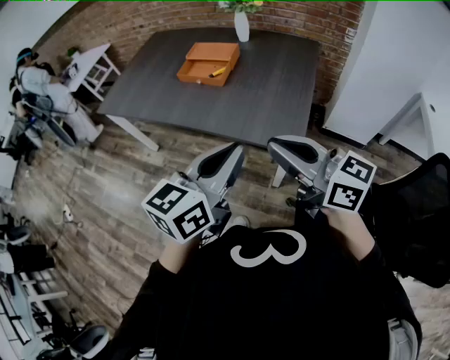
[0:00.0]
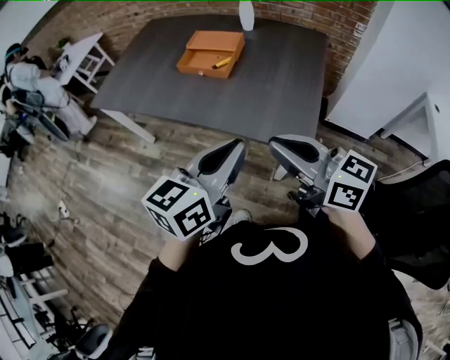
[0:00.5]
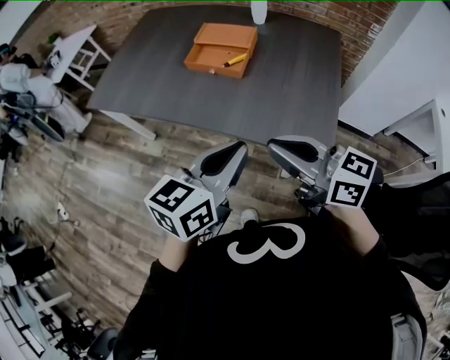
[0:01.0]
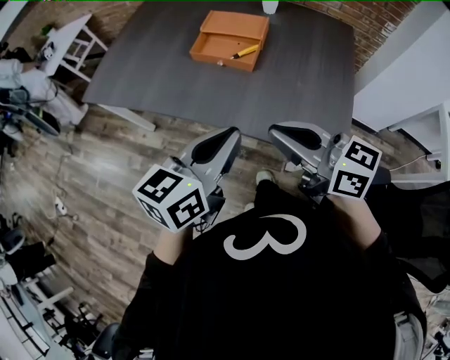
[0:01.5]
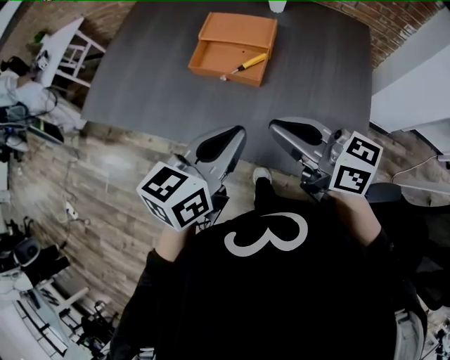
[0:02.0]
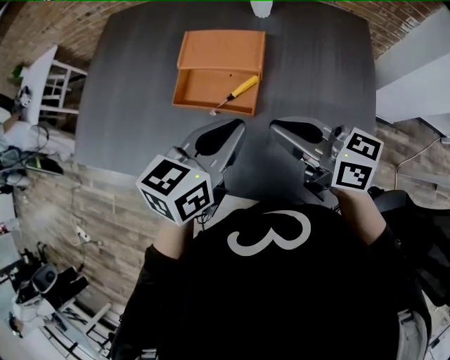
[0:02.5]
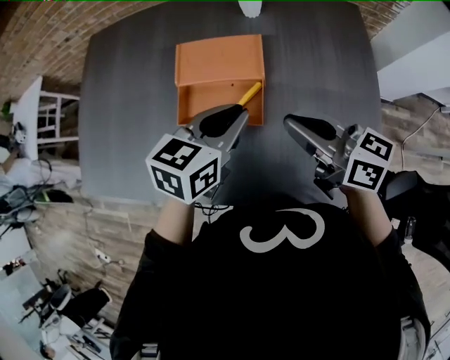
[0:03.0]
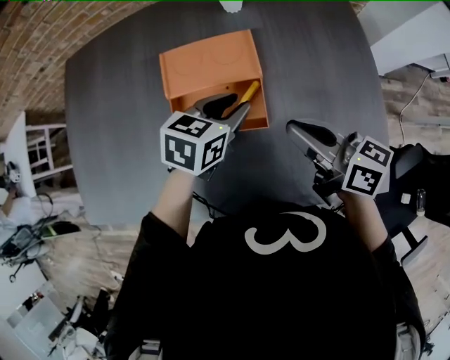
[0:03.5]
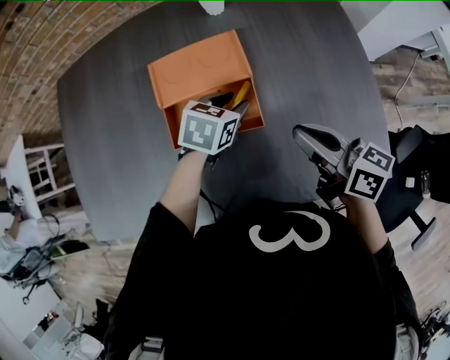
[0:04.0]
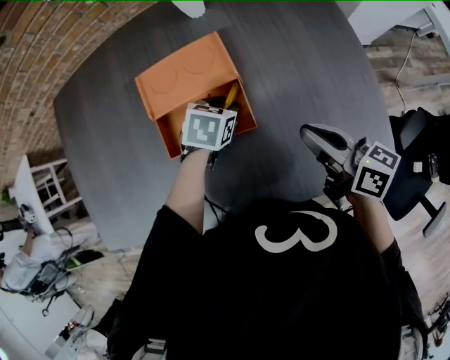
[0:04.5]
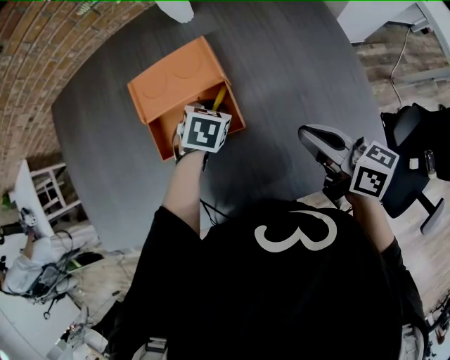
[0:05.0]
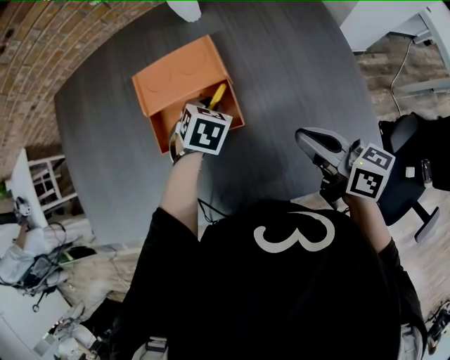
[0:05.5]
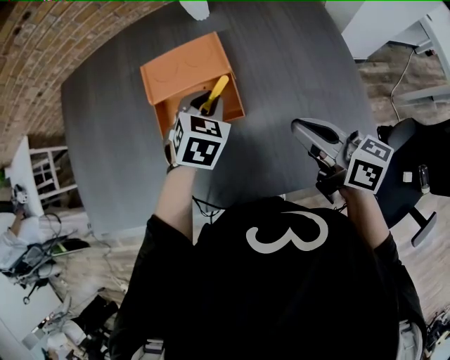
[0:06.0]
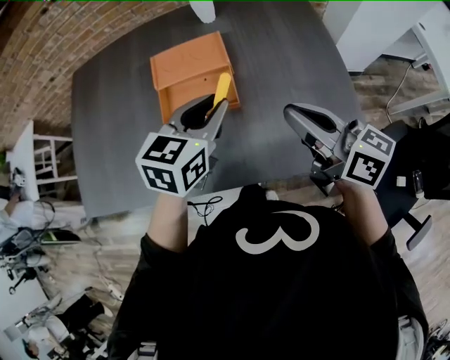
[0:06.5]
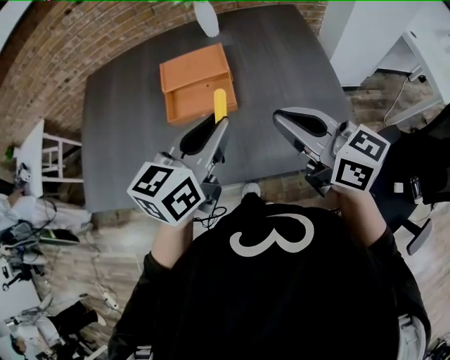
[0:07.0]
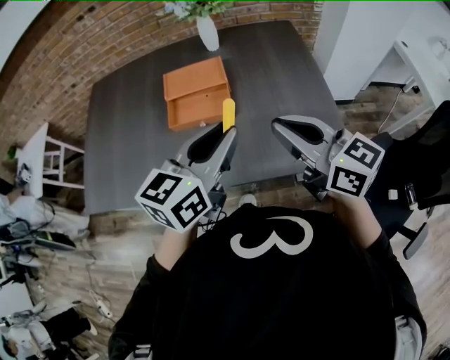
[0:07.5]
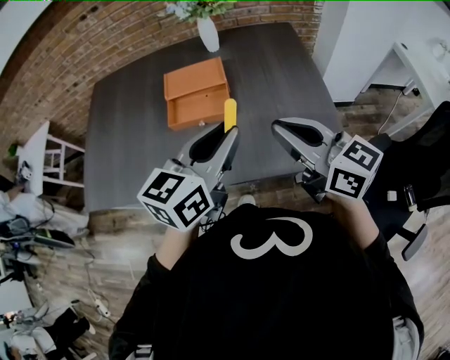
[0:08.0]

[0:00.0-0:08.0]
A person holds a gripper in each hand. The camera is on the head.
0.0 to 2.0 s: The two grippers go some 30 cm forward.
2.0 to 4.0 s: The right gripper shifts by roughly 20 cm, and changes its angle by approximately 40 degrees. Meanwhile the left gripper moves approximately 35 cm, angles its fingers downward, by some 30 degrees, and opens its fingers.
4.0 to 6.0 s: The right gripper shifts by about 5 cm. The left gripper is displaced upward by about 5 cm, and rotates some 30 degrees.
6.0 to 8.0 s: The right gripper travels backward and upward by approximately 20 cm, and swivels approximately 30 degrees, while the left gripper travels backward and upward by some 30 cm, and angles its fingers upward, by some 40 degrees.

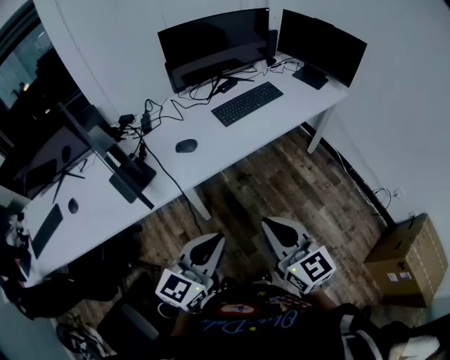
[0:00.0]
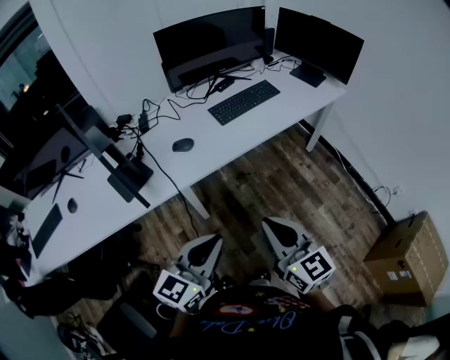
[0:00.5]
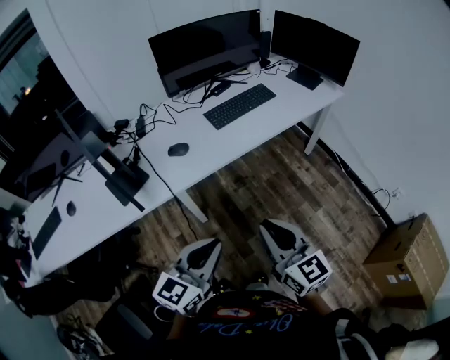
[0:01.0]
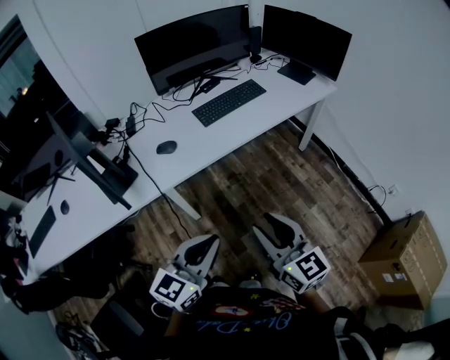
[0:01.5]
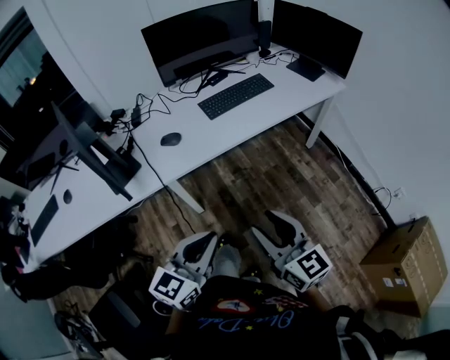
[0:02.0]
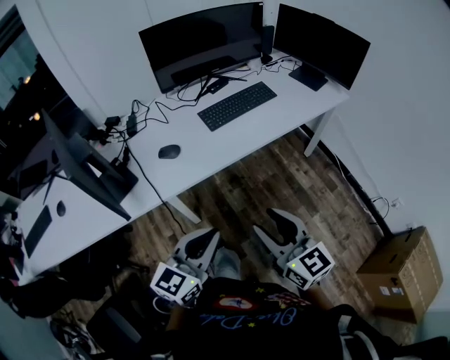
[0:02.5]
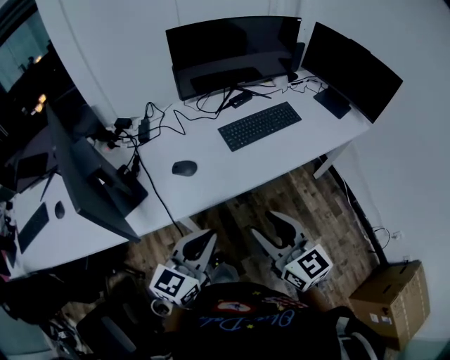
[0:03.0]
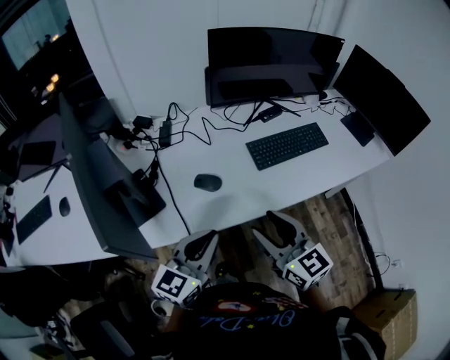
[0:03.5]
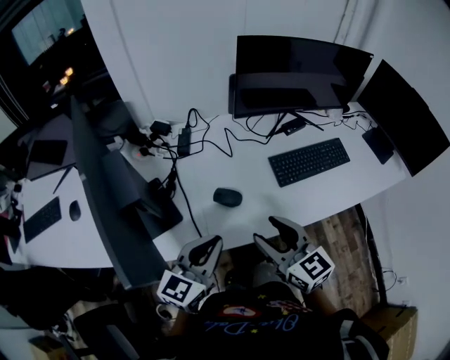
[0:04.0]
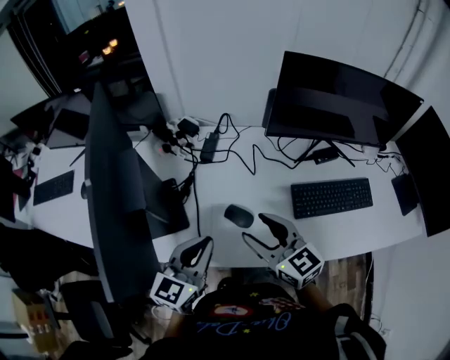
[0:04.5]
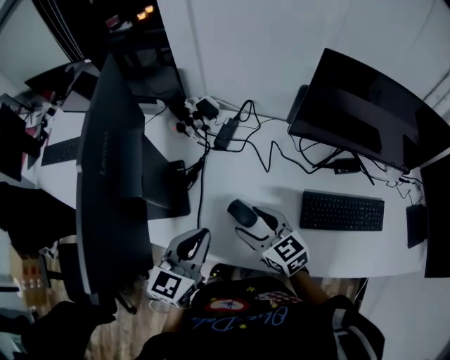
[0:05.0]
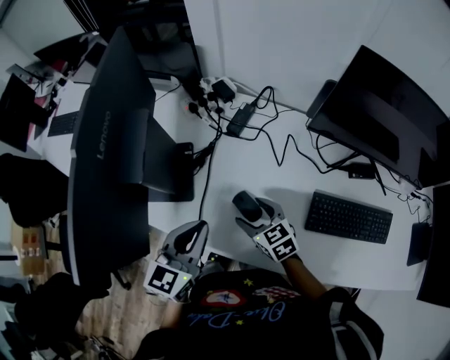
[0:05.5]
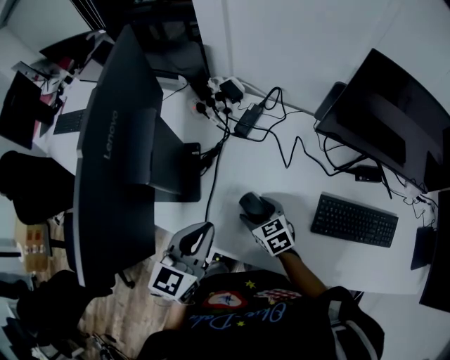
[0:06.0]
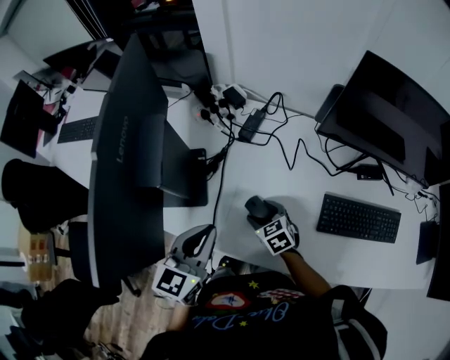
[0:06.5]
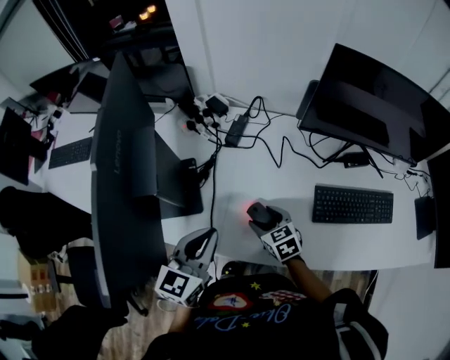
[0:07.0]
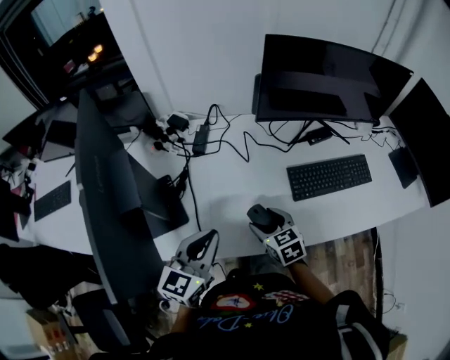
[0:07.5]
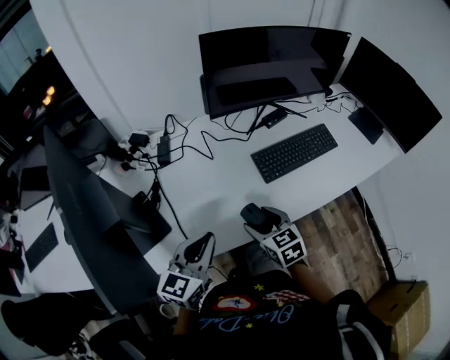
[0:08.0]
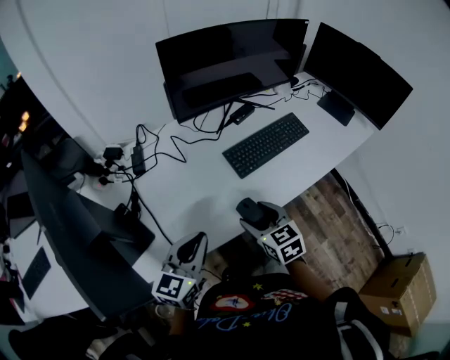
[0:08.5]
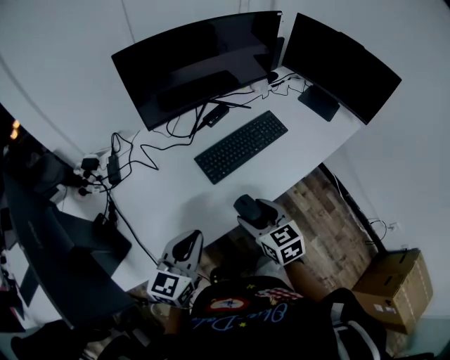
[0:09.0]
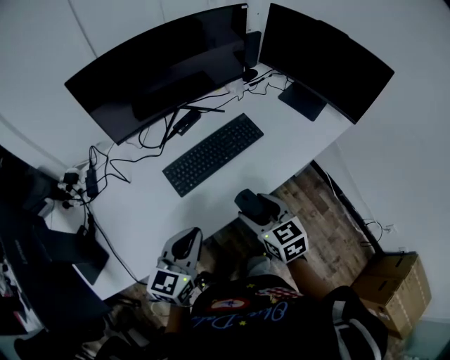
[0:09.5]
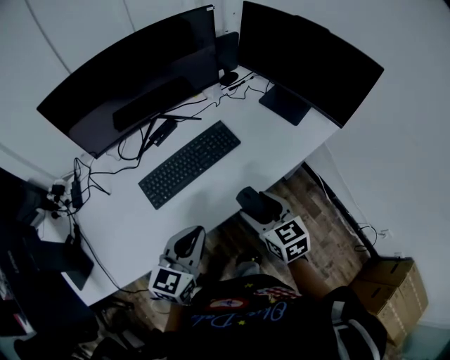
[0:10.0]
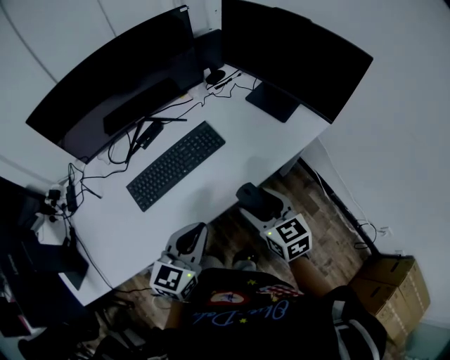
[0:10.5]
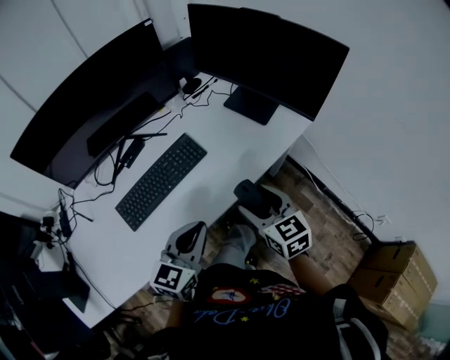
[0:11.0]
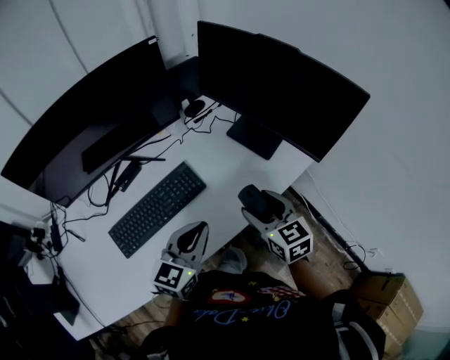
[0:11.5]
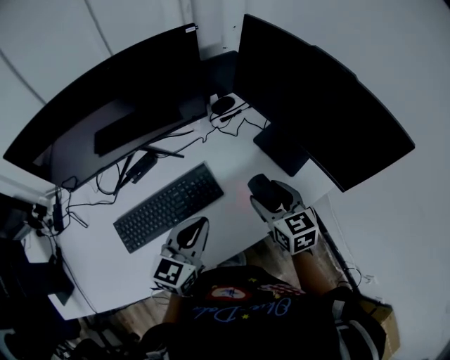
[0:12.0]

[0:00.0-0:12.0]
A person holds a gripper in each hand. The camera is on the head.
0.0 to 2.0 s: Both grippers travel together to the right, roughly 10 cm. The right gripper opens.
2.0 to 4.0 s: Both grippers move forward and to the left, some 35 cm. The right gripper swivels roughly 20 degrees.
4.0 to 6.0 s: The right gripper goes roughly 25 cm downward, and points its fingers about 30 degrees further downward. Meanwhile the left gripper changes place by some 10 cm, and turns by roughly 40 degrees.
6.0 to 8.0 s: The right gripper ends up about 20 cm from where it was, and changes its angle by some 40 degrees; the left gripper ends up some 5 cm from where it was, and turns by about 40 degrees.
8.0 to 10.0 s: Both grippers travel together to the right, some 35 cm.
10.0 to 12.0 s: The two grippers go approximately 25 cm forward and to the right.

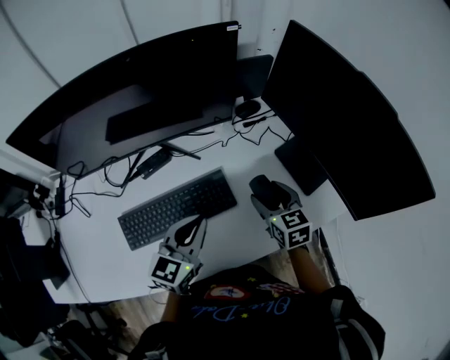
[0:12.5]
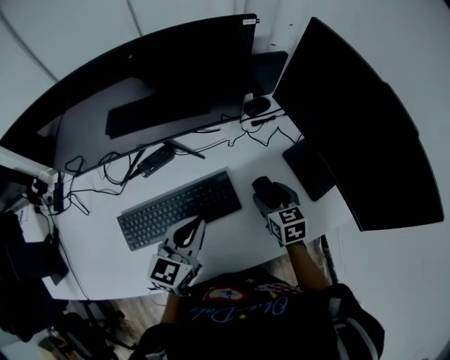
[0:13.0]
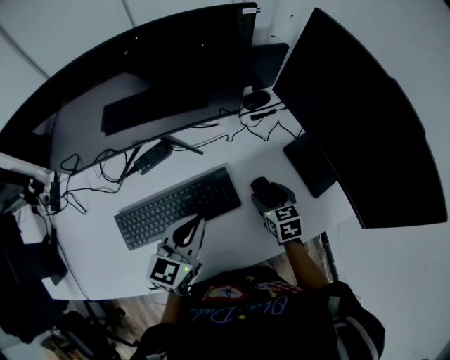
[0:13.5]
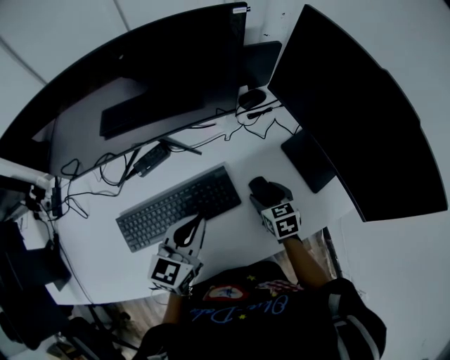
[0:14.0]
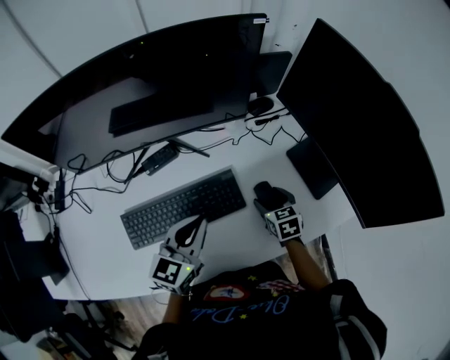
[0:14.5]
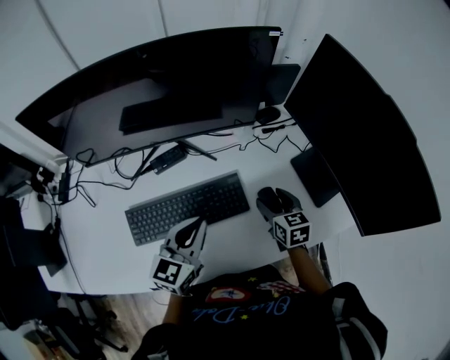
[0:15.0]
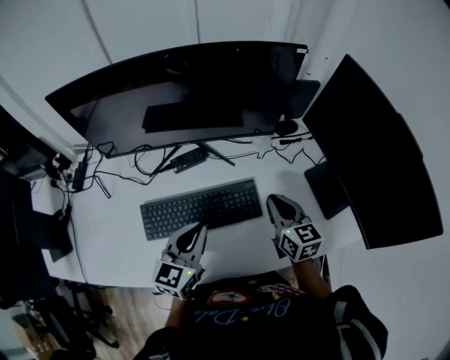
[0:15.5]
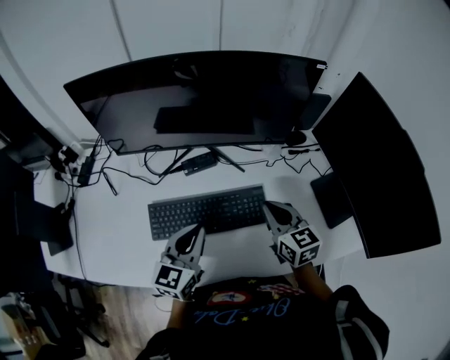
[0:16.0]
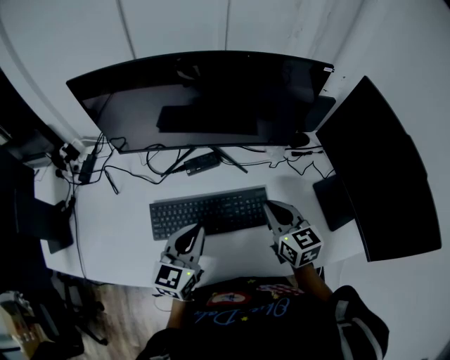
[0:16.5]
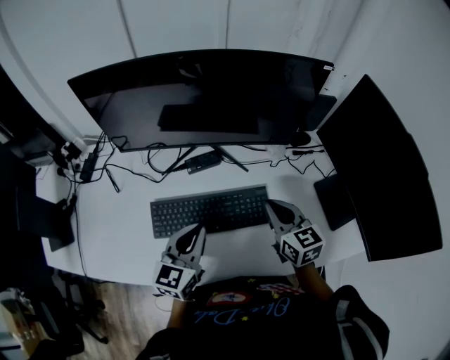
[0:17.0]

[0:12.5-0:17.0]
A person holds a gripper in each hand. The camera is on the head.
12.5 to 14.5 s: The right gripper moves downward, roughly 10 cm.
14.5 to 17.0 s: The right gripper shifts roughly 20 cm upward and to the left, turns by some 30 degrees, and closes its fingers. Meanwhile the left gripper shifts roughly 10 cm to the left.

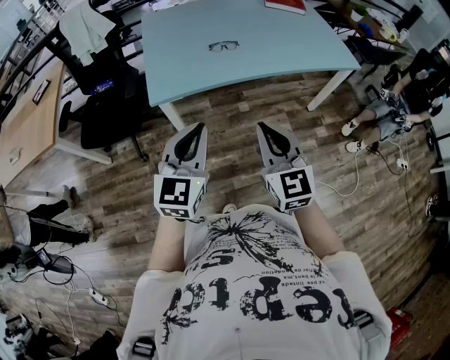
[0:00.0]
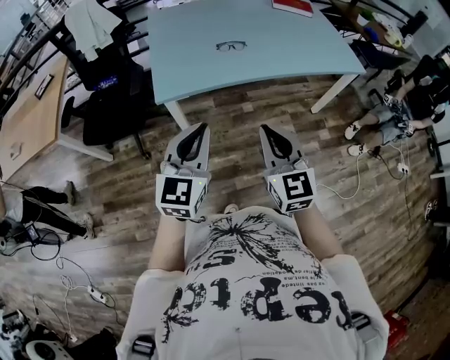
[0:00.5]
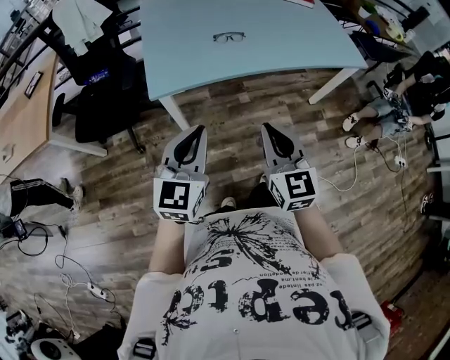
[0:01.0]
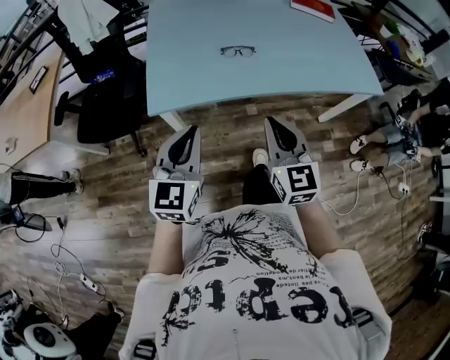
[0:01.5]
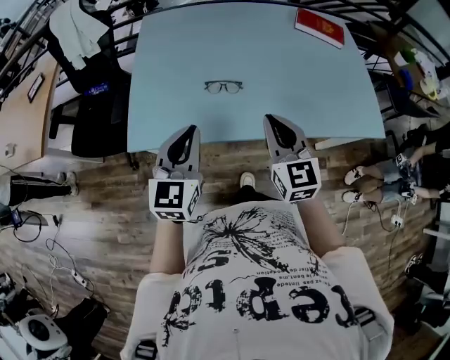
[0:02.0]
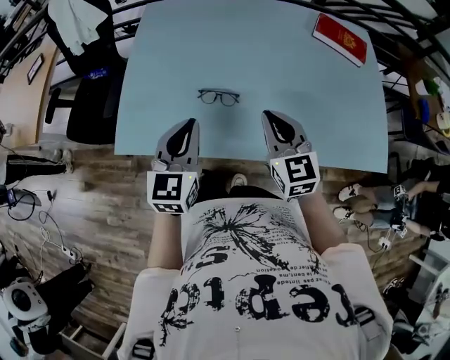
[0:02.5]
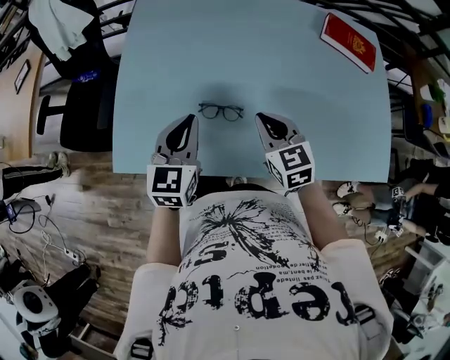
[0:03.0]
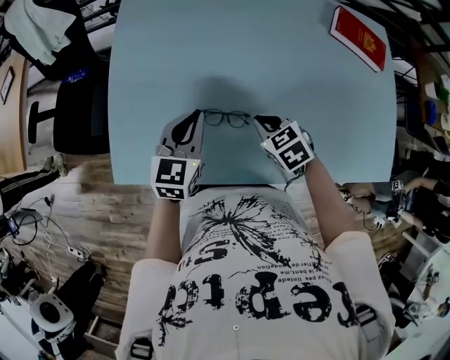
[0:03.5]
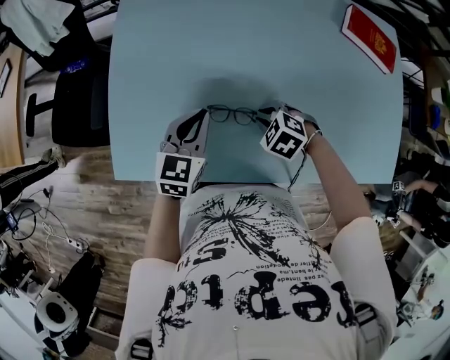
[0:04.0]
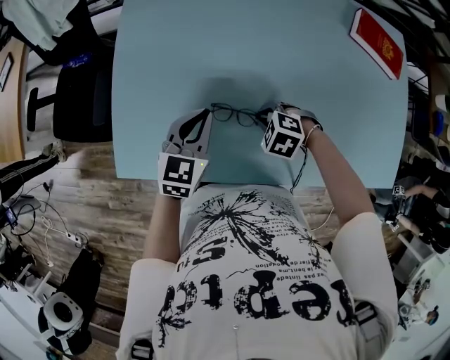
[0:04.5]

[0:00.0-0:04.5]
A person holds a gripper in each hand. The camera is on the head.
0.0 to 2.0 s: The grippers both shift forward by approximately 35 cm.
2.0 to 4.5 s: The right gripper is displaced downward by roughly 25 cm, and tips its fingers downward by roughly 60 degrees. The left gripper changes place by roughly 30 cm, and rotates roughly 20 degrees.
